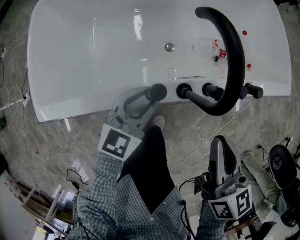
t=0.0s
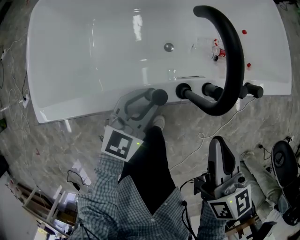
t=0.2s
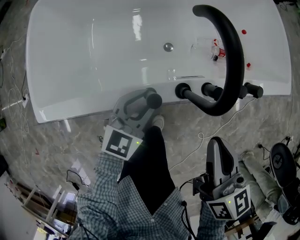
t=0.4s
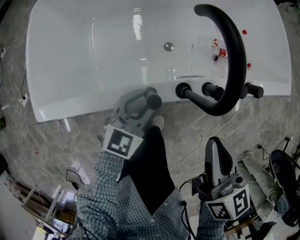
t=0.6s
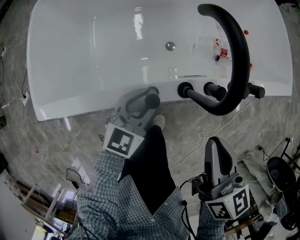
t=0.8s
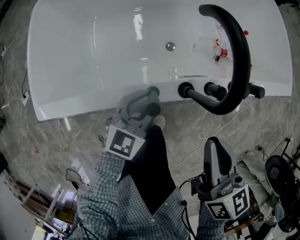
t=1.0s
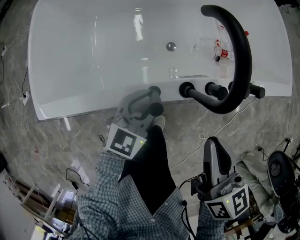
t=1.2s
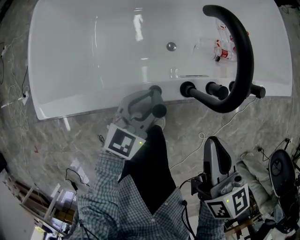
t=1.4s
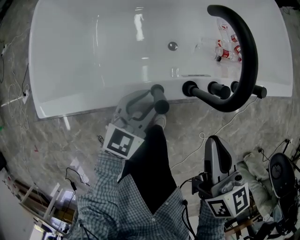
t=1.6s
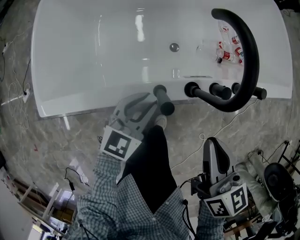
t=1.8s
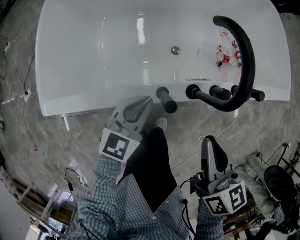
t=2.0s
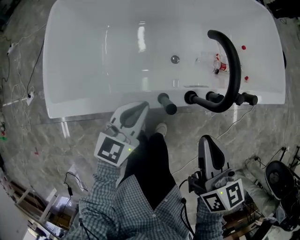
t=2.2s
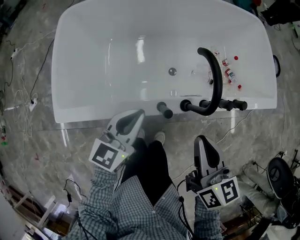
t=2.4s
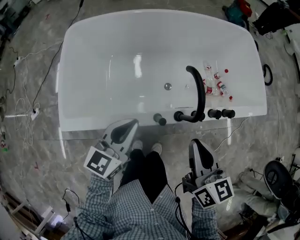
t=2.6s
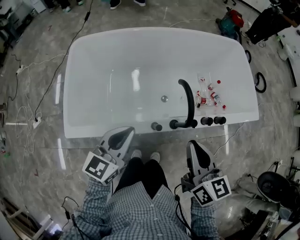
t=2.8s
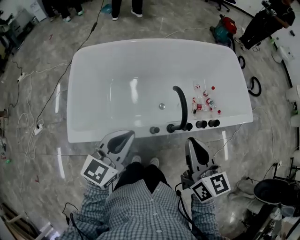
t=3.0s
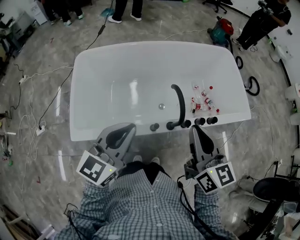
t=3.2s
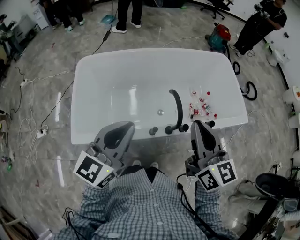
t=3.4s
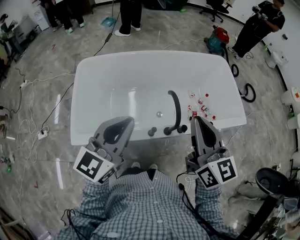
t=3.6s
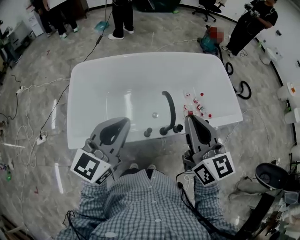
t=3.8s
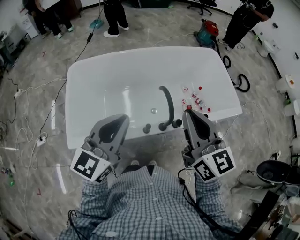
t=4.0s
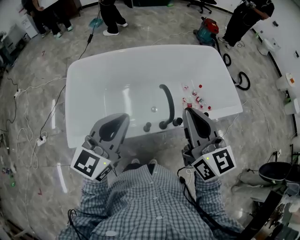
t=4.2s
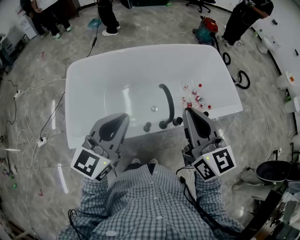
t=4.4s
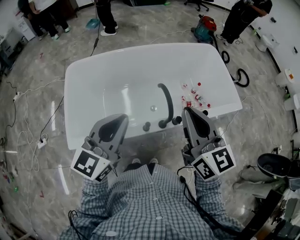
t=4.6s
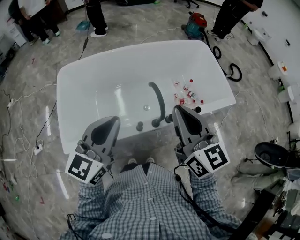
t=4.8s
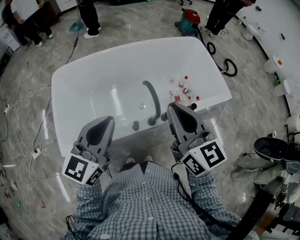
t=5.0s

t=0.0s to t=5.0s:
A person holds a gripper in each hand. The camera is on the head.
t=0.0s to t=1.6s: There are only small adjustments of the grippers.
t=1.6s to t=3.4s: The grippers both shift upward by some 40 cm. The right gripper changes its angle by approximately 30 degrees, while the left gripper rotates approximately 30 degrees, and closes its fingers.
t=3.4s to t=5.0s: There are only small adjustments of the grippers.

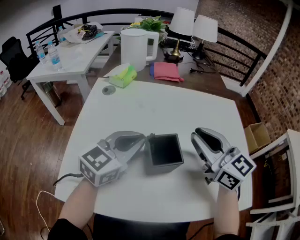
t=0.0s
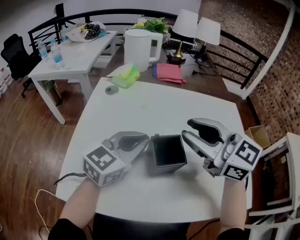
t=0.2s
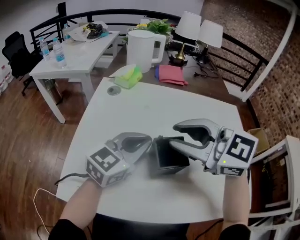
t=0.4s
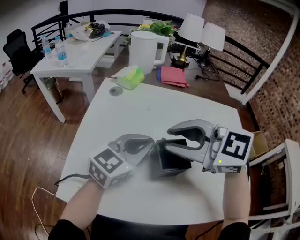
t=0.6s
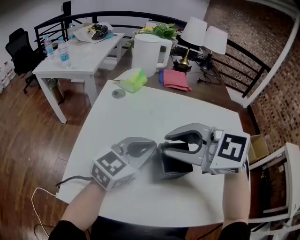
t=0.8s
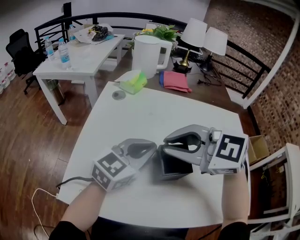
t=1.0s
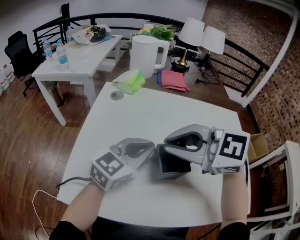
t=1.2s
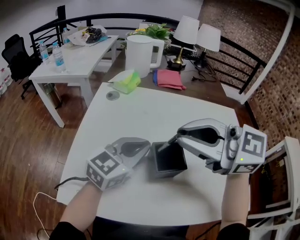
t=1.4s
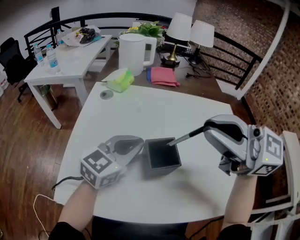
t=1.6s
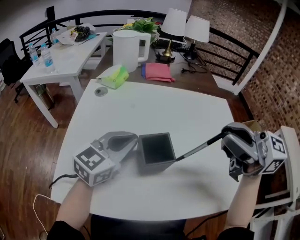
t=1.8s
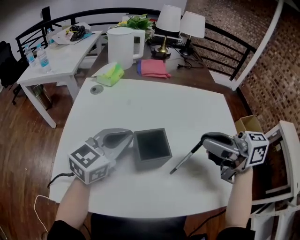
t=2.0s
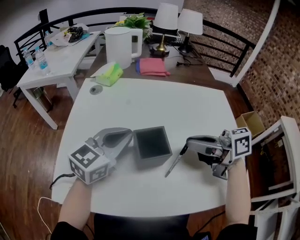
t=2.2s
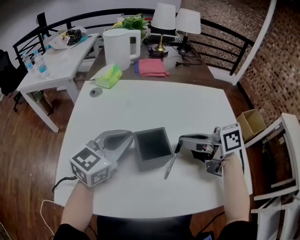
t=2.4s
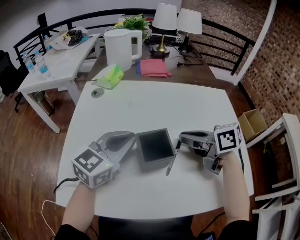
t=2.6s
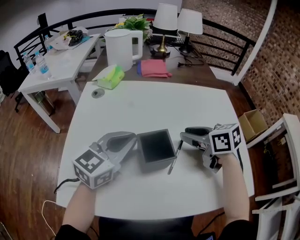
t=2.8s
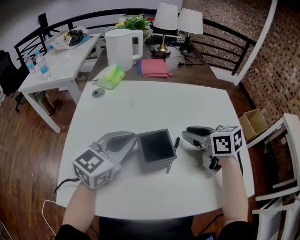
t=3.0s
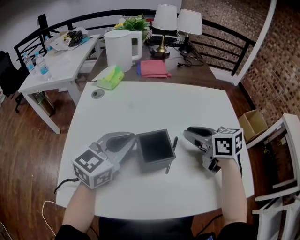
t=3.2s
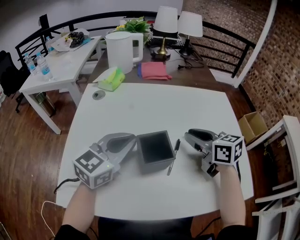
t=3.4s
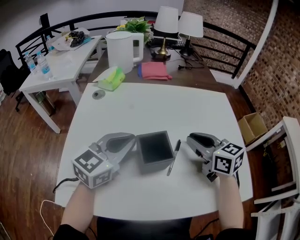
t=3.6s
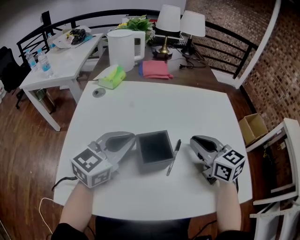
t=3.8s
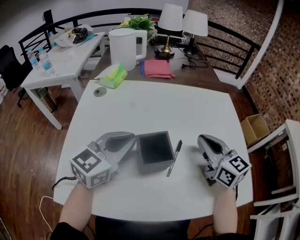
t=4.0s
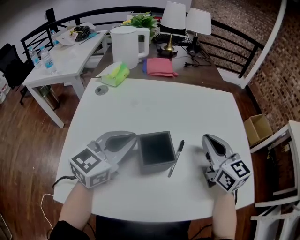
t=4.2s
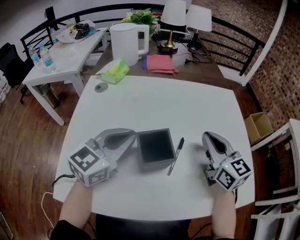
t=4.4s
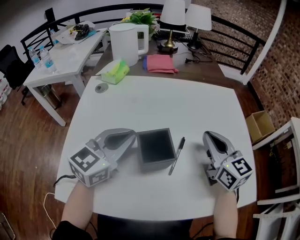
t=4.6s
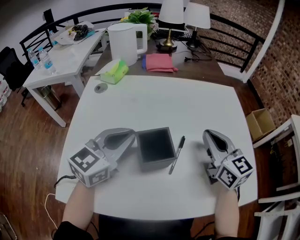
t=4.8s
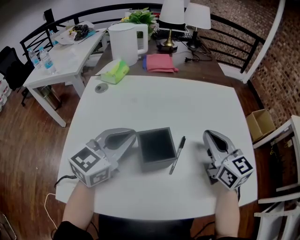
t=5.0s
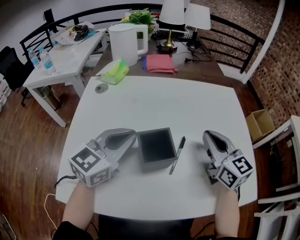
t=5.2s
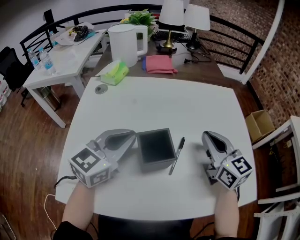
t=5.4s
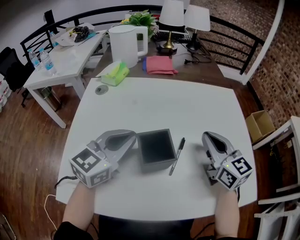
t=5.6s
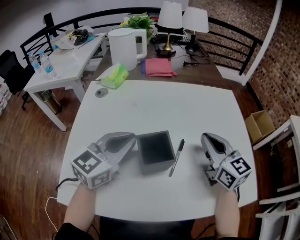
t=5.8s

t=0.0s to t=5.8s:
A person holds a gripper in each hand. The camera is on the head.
t=0.0s to t=1.4s: The right gripper is displaced to the left and upward by approximately 15 cm, and rotates about 30 degrees.
t=1.4s to t=2.8s: The right gripper heads downward and to the right, covering roughly 20 cm, turns by approximately 50 degrees, and opens.
t=2.8s to t=4.4s: The right gripper moves to the right, roughly 5 cm, turns by about 40 degrees, and closes its fingers.
t=4.4s to t=5.8s: The two grippers keep their place.

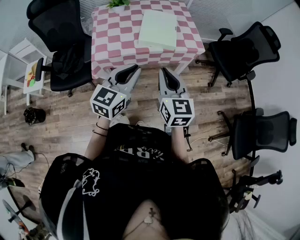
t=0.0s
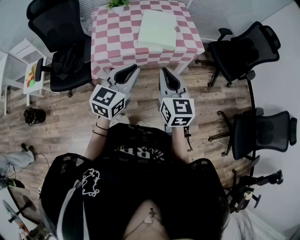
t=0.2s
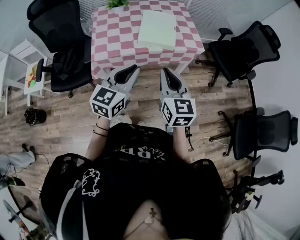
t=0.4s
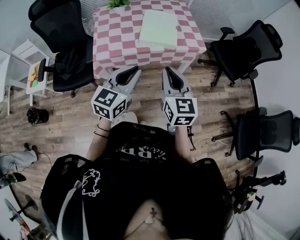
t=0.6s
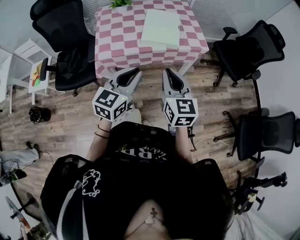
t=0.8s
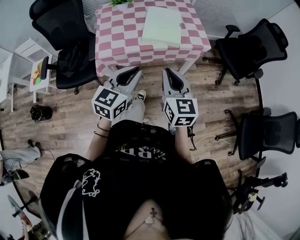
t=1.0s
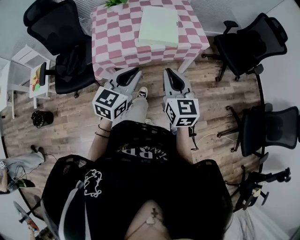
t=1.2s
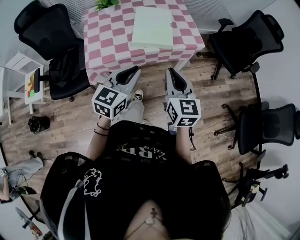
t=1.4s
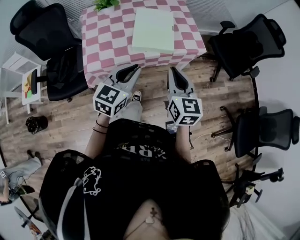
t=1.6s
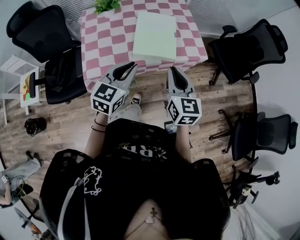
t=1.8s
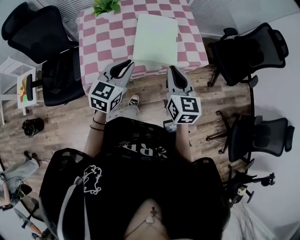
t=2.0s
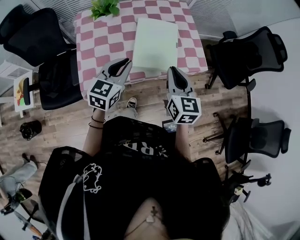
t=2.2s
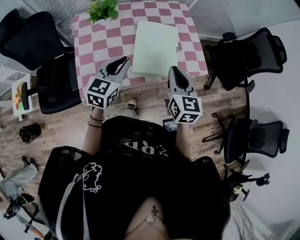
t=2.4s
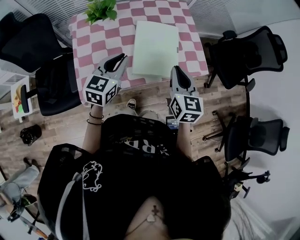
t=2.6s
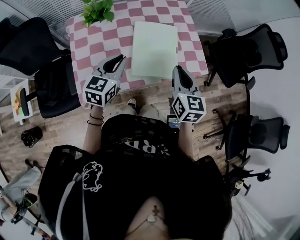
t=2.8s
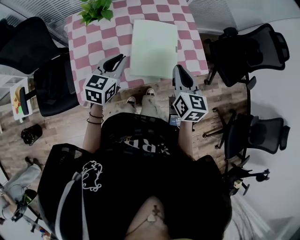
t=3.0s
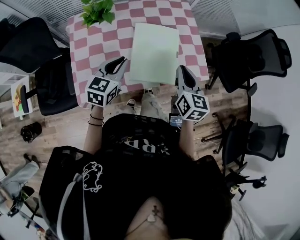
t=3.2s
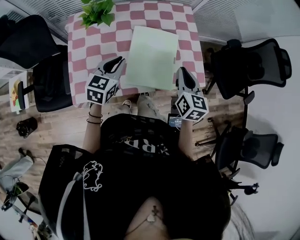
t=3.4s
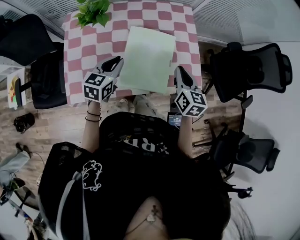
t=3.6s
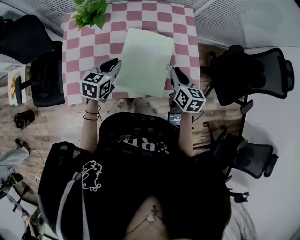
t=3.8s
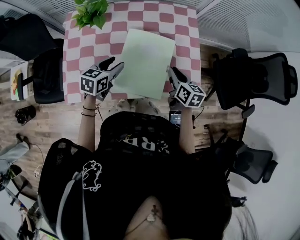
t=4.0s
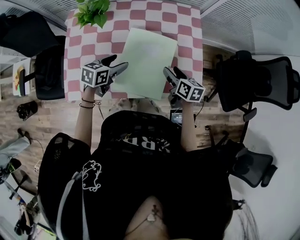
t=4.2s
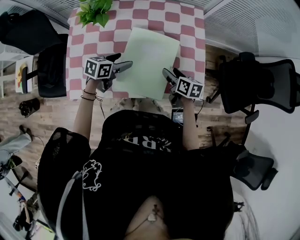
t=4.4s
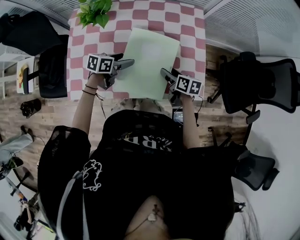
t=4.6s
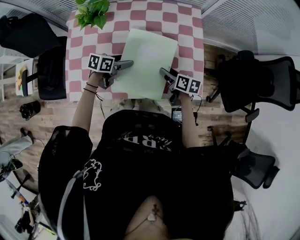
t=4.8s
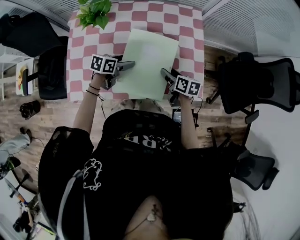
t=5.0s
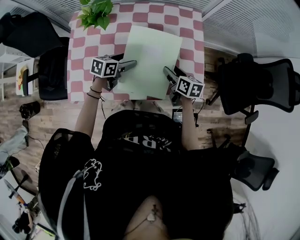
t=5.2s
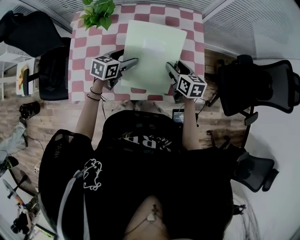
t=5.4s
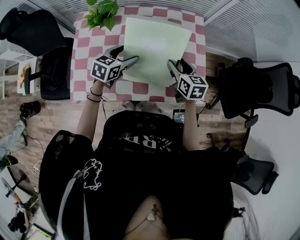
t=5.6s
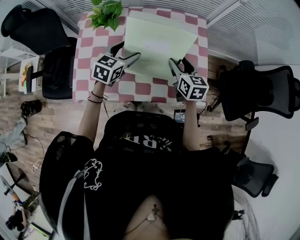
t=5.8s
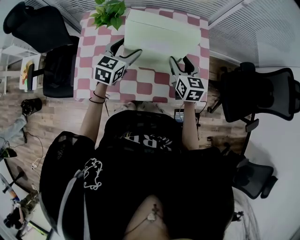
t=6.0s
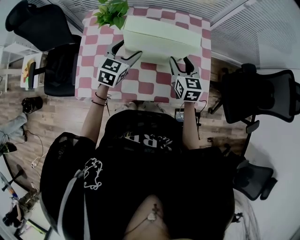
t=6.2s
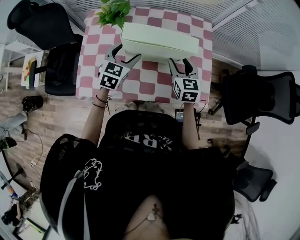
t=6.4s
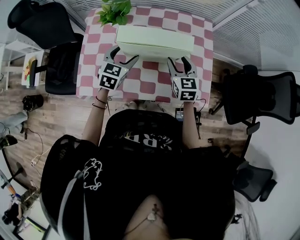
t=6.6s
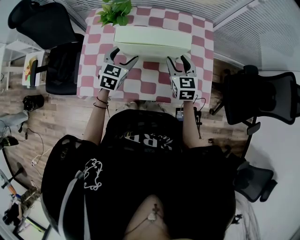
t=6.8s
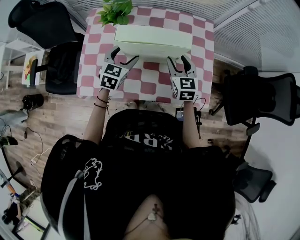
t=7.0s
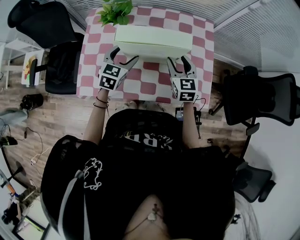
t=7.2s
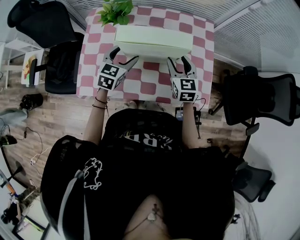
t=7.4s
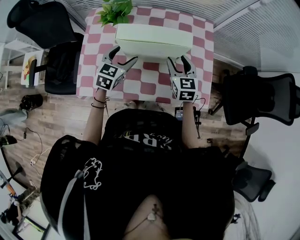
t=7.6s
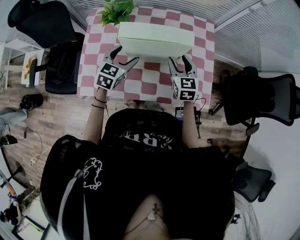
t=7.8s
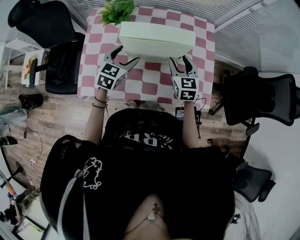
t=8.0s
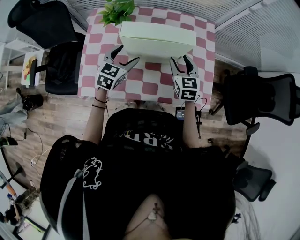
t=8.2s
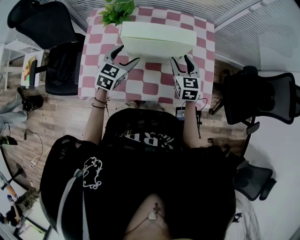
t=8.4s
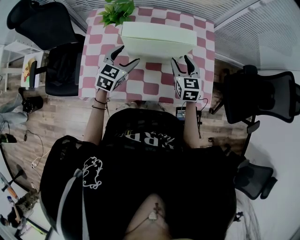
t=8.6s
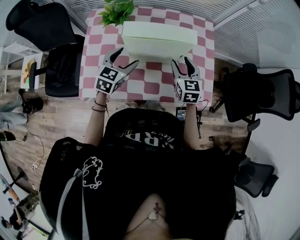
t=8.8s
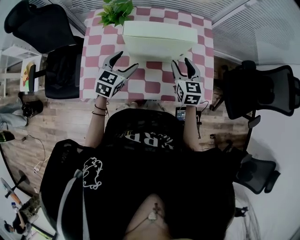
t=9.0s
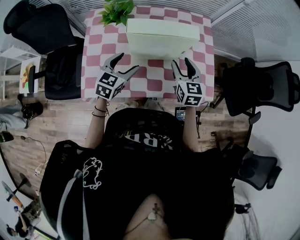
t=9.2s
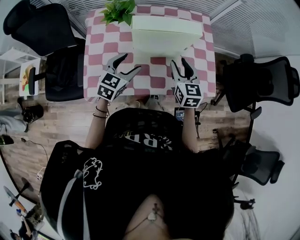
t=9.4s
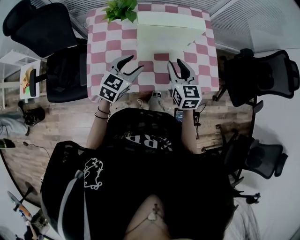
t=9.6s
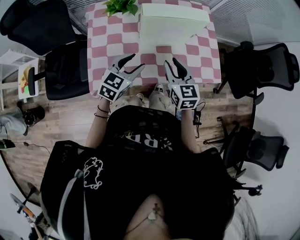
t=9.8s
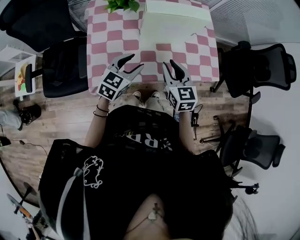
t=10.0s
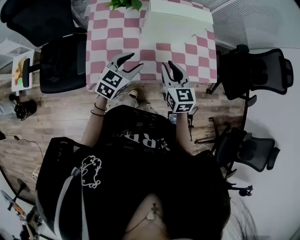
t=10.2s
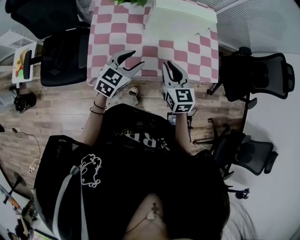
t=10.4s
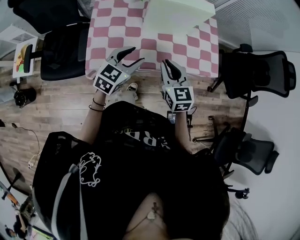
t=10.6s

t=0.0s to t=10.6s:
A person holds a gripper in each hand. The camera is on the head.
t=0.0s to t=1.6s: Both grippers travel together forward, approximately 10 cm.
t=1.6s to t=3.0s: The right gripper shifts about 20 cm forward, while the left gripper moves forward and to the left, some 25 cm.
t=3.0s to t=4.6s: Both grippers move downward and forward, about 25 cm. The right gripper rotates about 50 degrees, and opens its fingers, while the left gripper turns by about 40 degrees, and opens its fingers.
t=4.6s to t=6.0s: Both grippers move upward, some 15 cm. The left gripper changes its angle by about 40 degrees. Meanwhile the right gripper swivels some 40 degrees.
t=6.0s to t=7.6s: The left gripper changes place by roughly 5 cm.
t=7.6s to t=9.0s: The grippers stay close to where they were, moving slightly.
t=9.0s to t=10.6s: The right gripper is displaced backward and to the left by roughly 25 cm, and closes its fingers. Meanwhile the left gripper travels backward by roughly 15 cm, and closes its fingers.

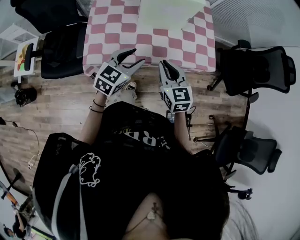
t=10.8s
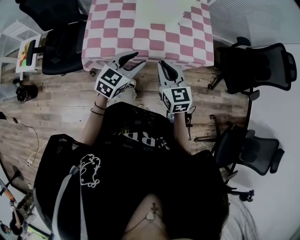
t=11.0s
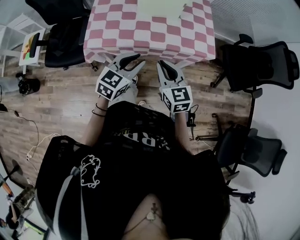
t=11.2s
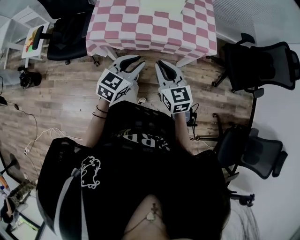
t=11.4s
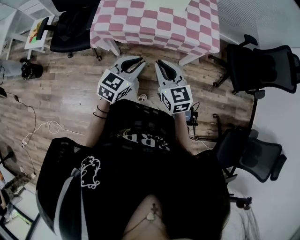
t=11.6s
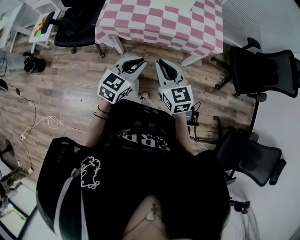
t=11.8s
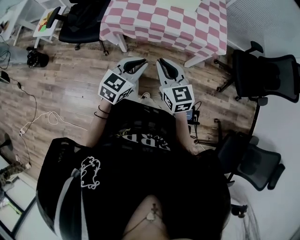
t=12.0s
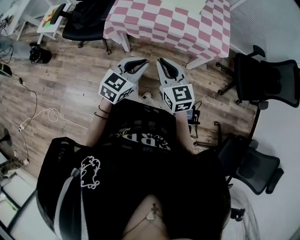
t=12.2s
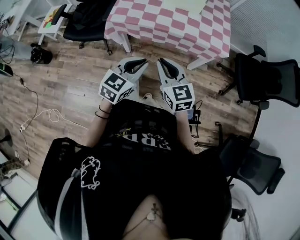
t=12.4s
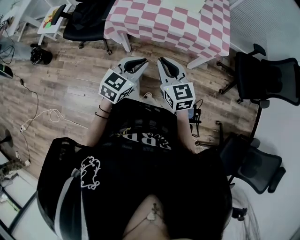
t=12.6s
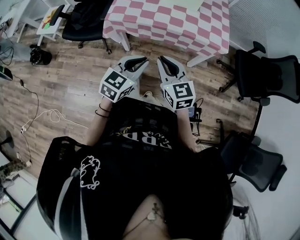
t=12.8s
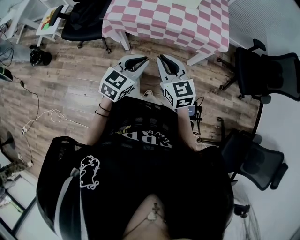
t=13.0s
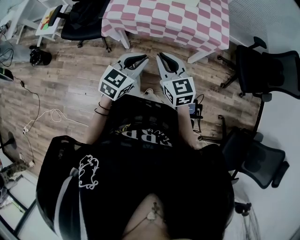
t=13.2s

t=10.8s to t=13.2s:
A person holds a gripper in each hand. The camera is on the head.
t=10.8s to t=12.0s: The grippers both shift backward by approximately 25 cm. The left gripper closes up.
t=12.0s to t=13.2s: There are only small adjustments of the grippers.
